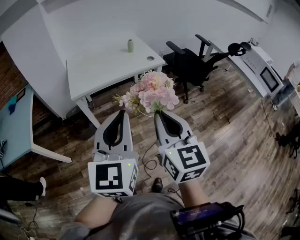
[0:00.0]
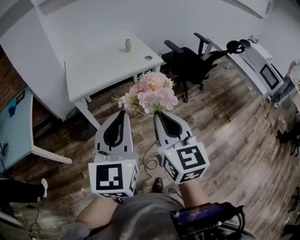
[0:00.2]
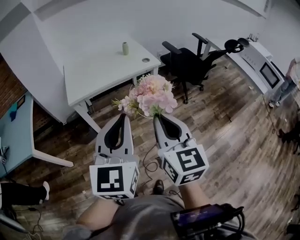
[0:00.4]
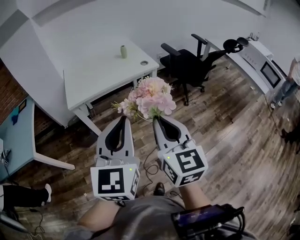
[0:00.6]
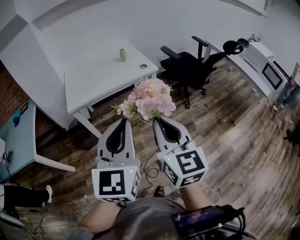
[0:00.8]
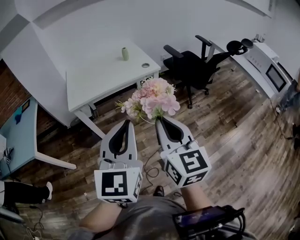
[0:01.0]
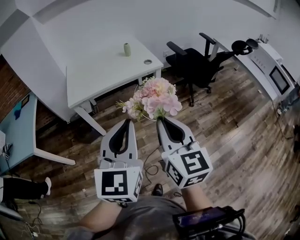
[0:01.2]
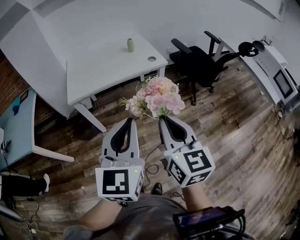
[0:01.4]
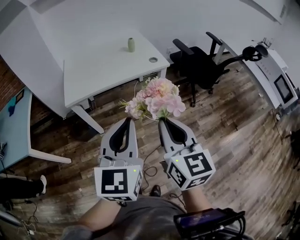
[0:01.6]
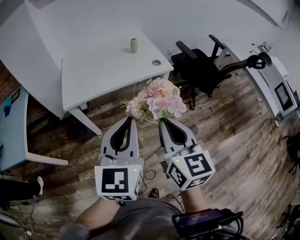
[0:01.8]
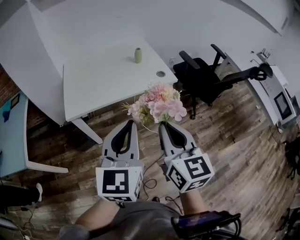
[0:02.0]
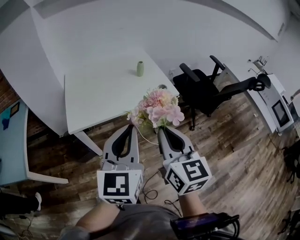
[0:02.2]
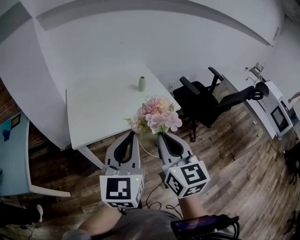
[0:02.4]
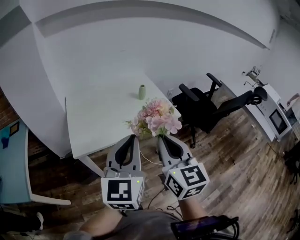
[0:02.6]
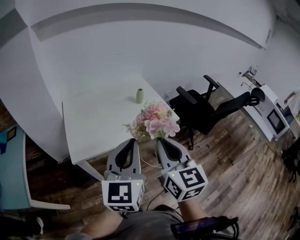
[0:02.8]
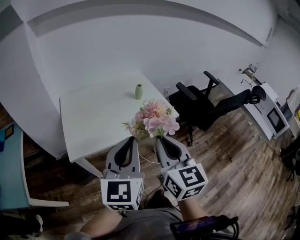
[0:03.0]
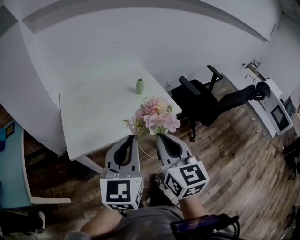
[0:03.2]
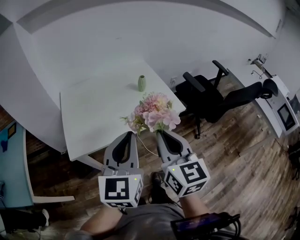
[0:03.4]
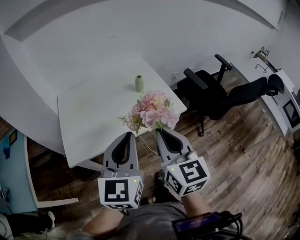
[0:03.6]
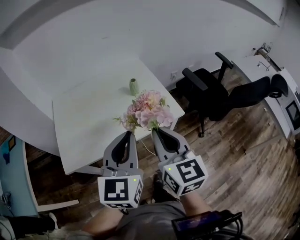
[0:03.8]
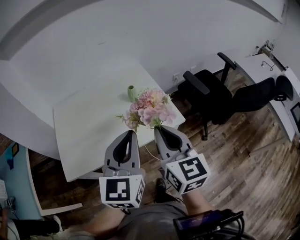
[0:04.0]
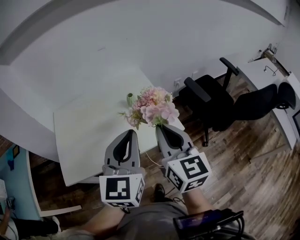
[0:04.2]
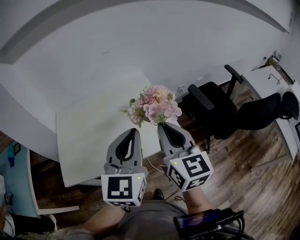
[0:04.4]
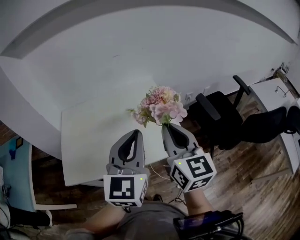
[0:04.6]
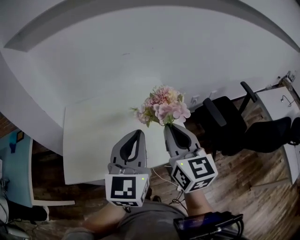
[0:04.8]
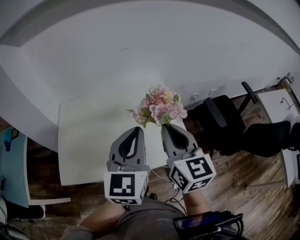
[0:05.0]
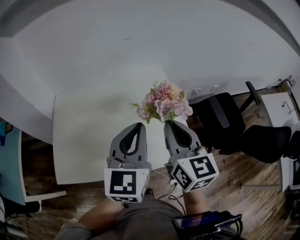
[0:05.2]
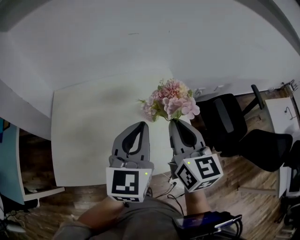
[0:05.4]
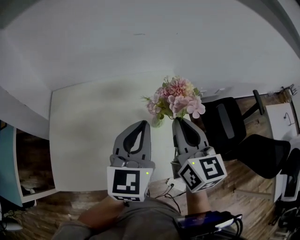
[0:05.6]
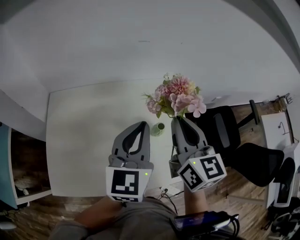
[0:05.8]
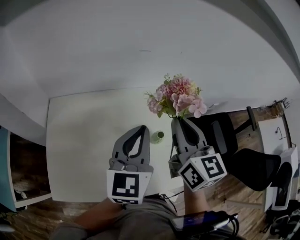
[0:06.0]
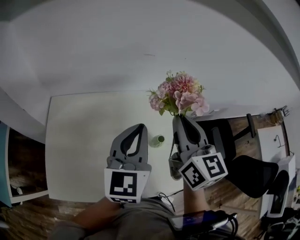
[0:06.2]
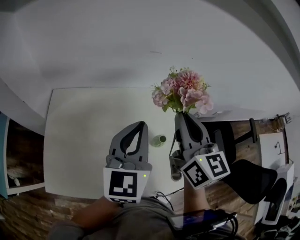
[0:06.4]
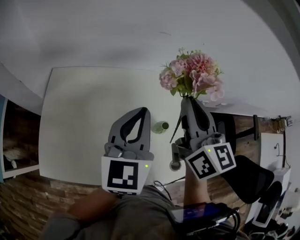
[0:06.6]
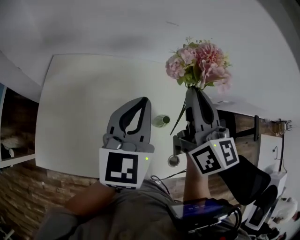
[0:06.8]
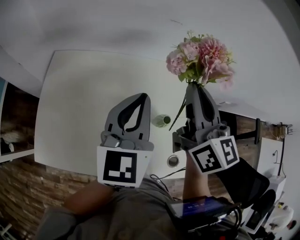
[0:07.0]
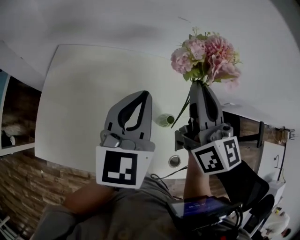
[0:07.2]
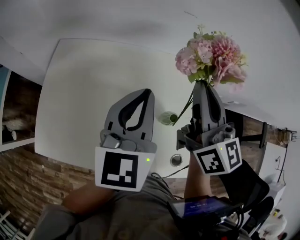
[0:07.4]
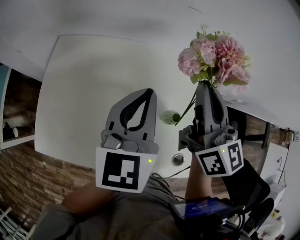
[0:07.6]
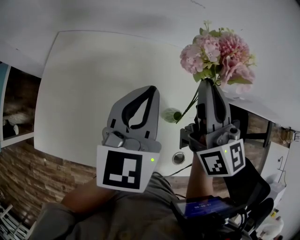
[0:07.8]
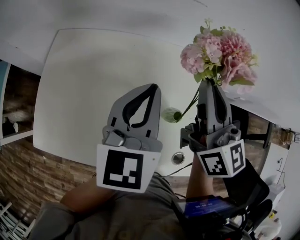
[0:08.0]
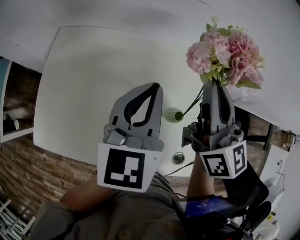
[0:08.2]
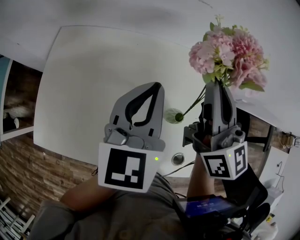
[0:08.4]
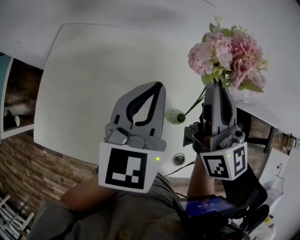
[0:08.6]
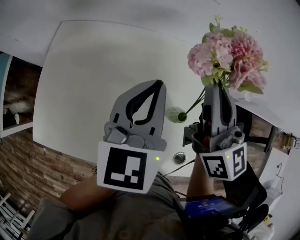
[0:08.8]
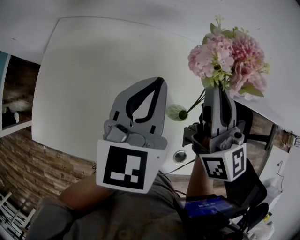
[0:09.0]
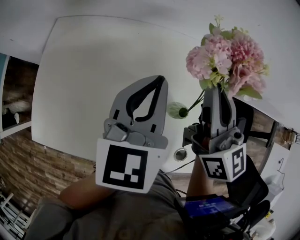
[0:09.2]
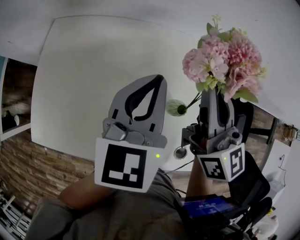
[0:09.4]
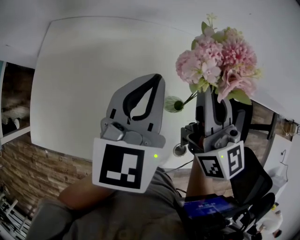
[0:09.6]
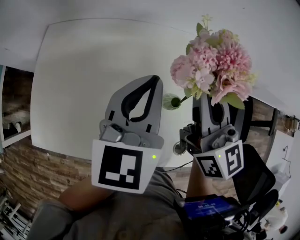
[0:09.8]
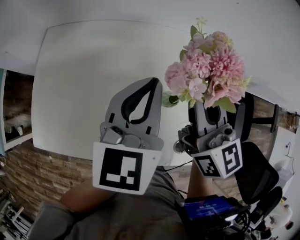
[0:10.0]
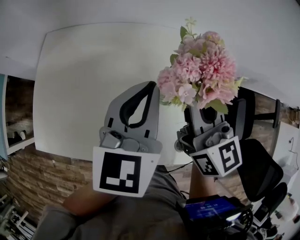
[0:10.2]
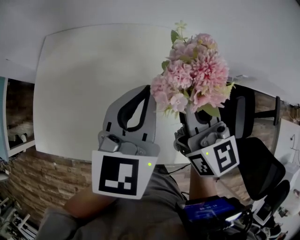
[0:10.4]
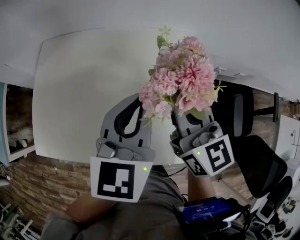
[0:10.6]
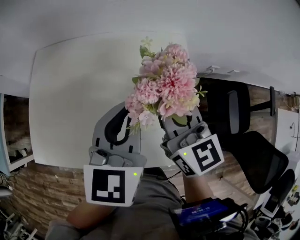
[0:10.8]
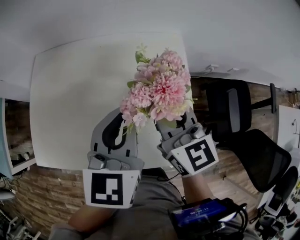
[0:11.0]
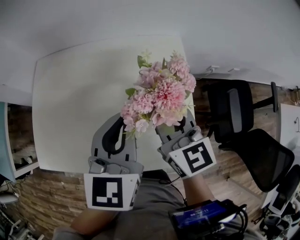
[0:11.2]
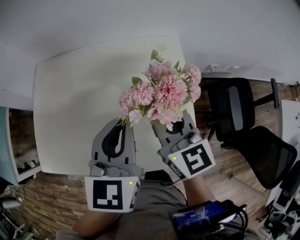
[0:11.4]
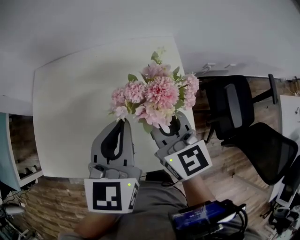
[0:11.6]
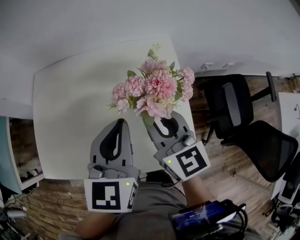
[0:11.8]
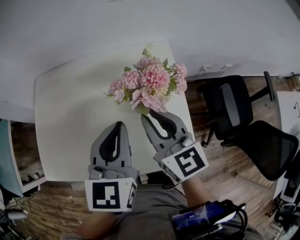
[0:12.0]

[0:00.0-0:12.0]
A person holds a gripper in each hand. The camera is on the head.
0:00.0 to 0:01.6: The right gripper goes roughly 10 cm forward and to the right; the left gripper moves forward, to the right and downward, approximately 15 cm.
0:01.6 to 0:03.0: Both grippers move forward and to the left, roughly 25 cm.
0:03.0 to 0:04.4: Both grippers travel together forward and to the right, roughly 30 cm.
0:04.4 to 0:06.0: The left gripper travels forward and to the left by roughly 25 cm. The right gripper goes approximately 25 cm forward.
0:06.0 to 0:07.6: The right gripper shifts some 5 cm forward, while the left gripper goes approximately 5 cm downward.
0:07.6 to 0:09.0: The grippers move only a little.
0:09.0 to 0:10.4: The right gripper heads downward, covering roughly 5 cm, while the left gripper ends up roughly 5 cm from where it was.
0:10.4 to 0:12.0: Both grippers travel together backward, roughly 10 cm.

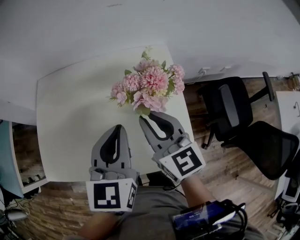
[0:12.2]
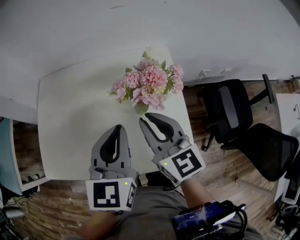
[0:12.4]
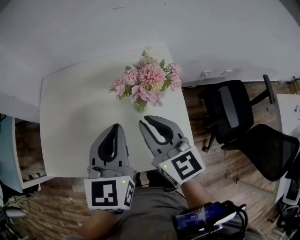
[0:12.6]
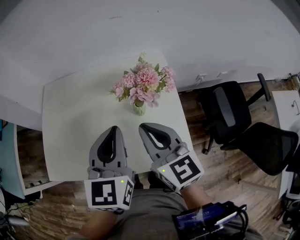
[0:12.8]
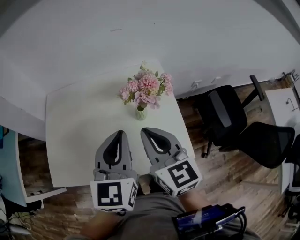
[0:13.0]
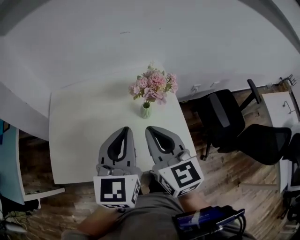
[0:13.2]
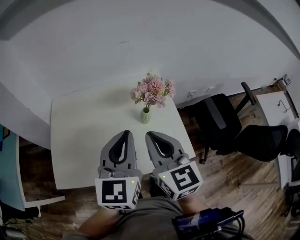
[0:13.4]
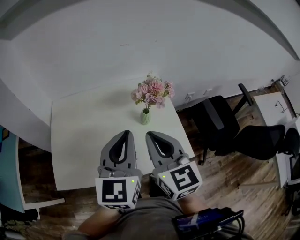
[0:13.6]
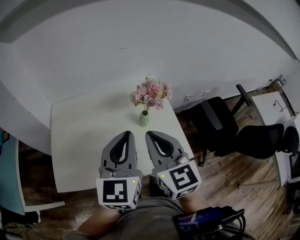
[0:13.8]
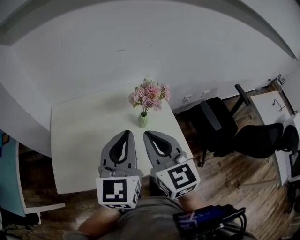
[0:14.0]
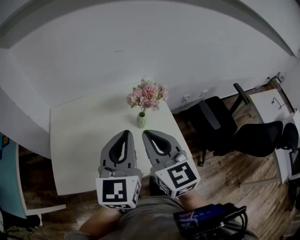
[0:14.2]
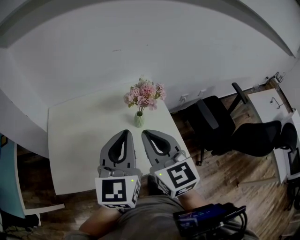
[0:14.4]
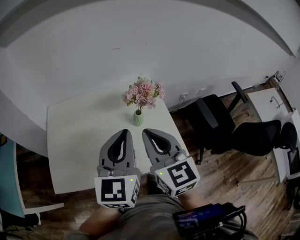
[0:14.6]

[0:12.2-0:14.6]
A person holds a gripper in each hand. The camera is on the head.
0:12.2 to 0:13.4: The left gripper moves upward and backward, about 10 cm. The right gripper shifts approximately 15 cm backward and upward.
0:13.4 to 0:14.6: The grippers move only a little.

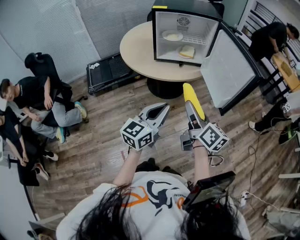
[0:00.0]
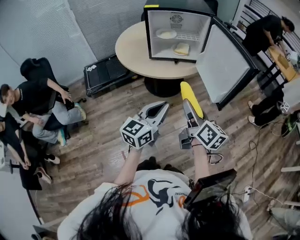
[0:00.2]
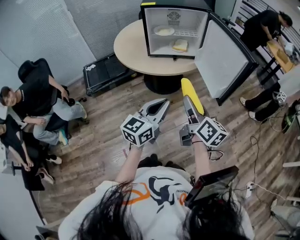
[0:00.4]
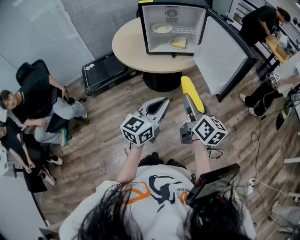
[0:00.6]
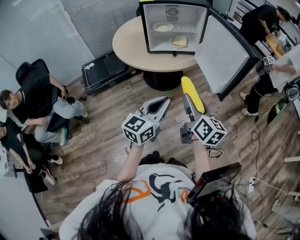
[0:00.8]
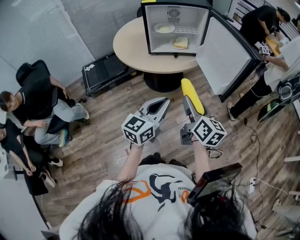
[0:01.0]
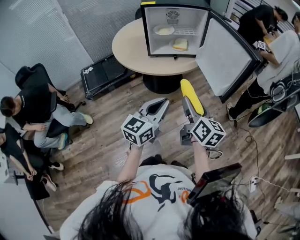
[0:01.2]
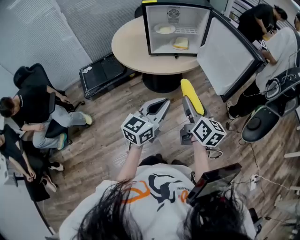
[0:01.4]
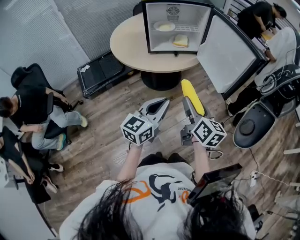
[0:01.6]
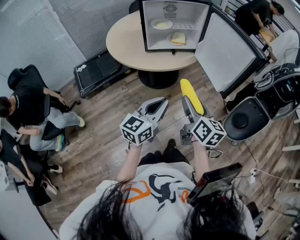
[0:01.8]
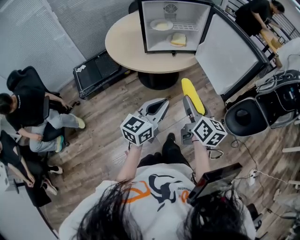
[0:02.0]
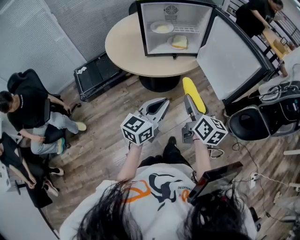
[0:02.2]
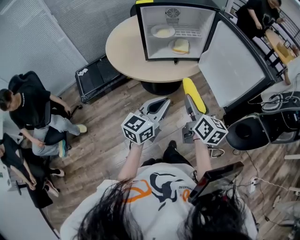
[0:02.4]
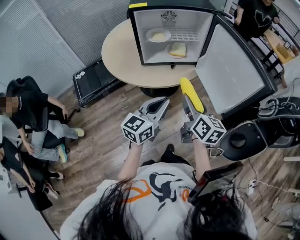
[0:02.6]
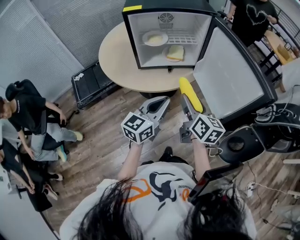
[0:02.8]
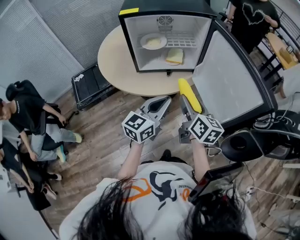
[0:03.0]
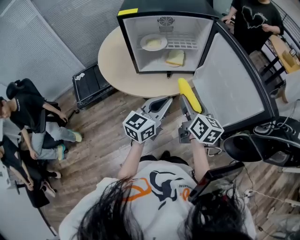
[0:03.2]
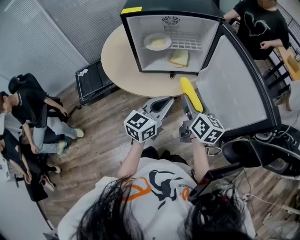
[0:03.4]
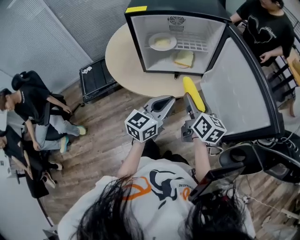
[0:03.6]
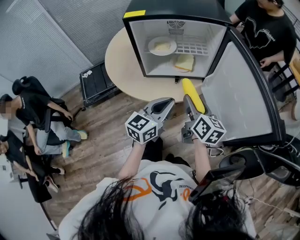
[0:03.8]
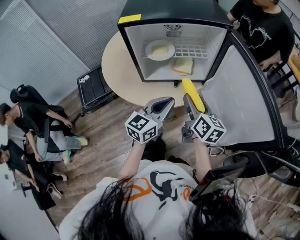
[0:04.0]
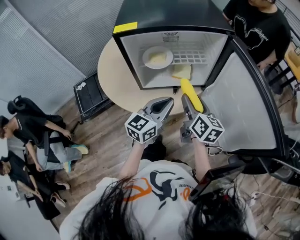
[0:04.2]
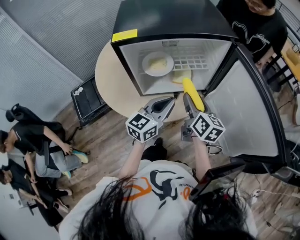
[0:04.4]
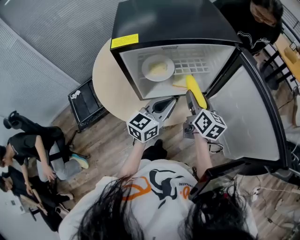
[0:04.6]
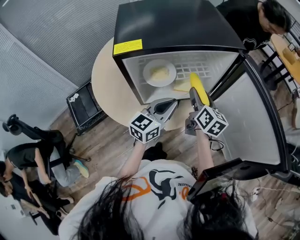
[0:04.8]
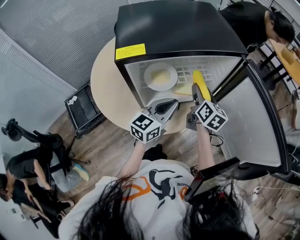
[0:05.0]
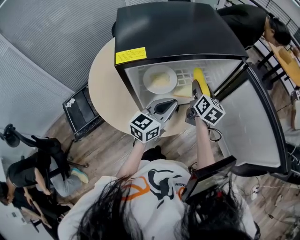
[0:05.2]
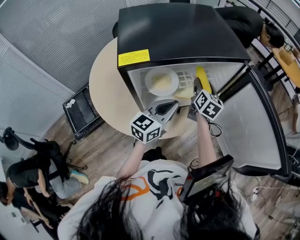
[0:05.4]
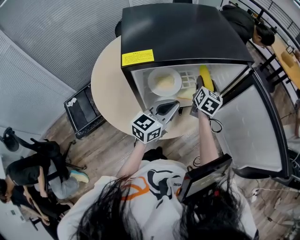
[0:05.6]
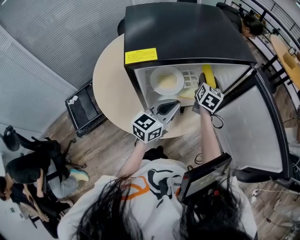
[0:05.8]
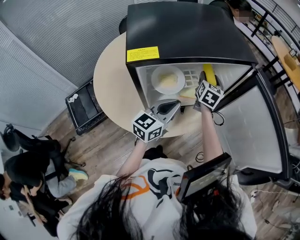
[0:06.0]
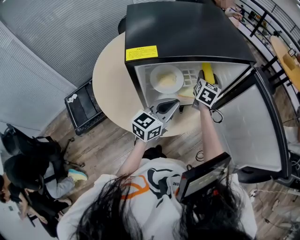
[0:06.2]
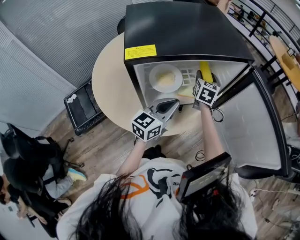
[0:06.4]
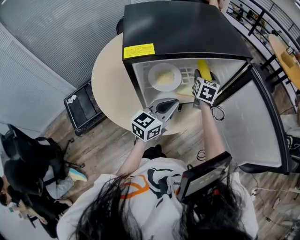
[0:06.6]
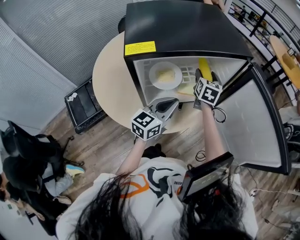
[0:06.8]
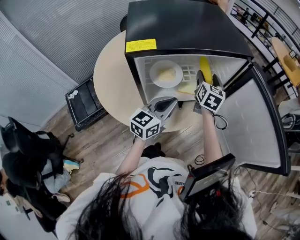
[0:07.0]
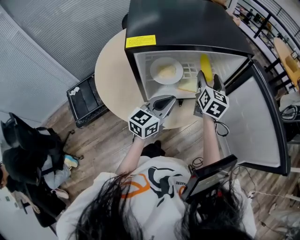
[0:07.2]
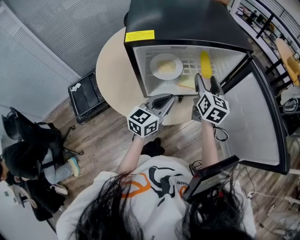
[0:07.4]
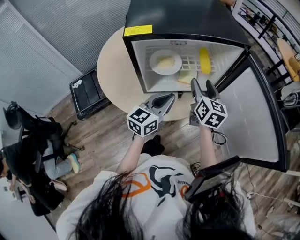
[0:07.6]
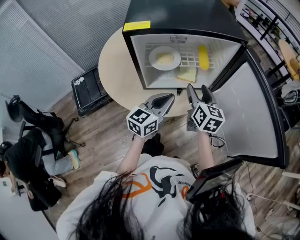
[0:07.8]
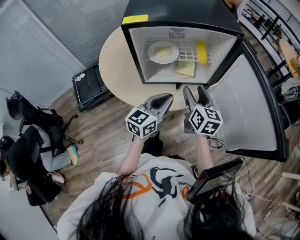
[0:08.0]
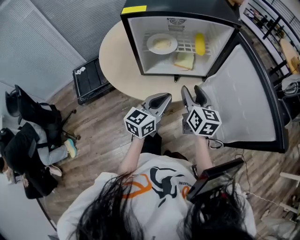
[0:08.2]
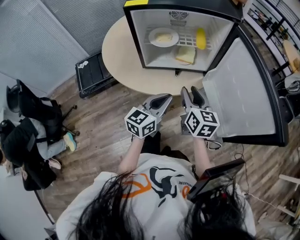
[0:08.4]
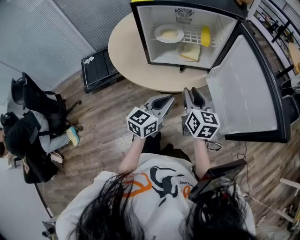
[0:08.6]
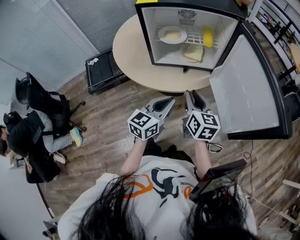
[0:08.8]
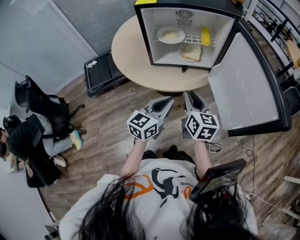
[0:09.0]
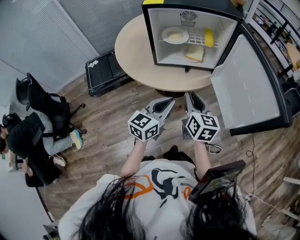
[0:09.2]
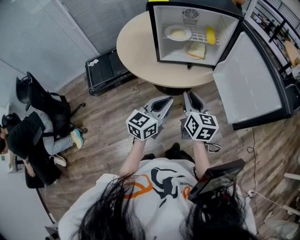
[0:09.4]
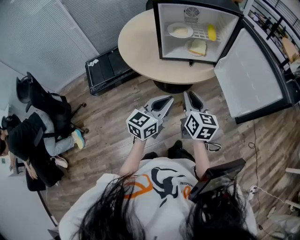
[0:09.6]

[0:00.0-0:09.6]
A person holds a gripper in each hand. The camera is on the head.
0:00.0 to 0:01.6: The right gripper shifts by some 5 cm.
0:01.6 to 0:03.2: The grippers both shift forward by about 25 cm.
0:03.2 to 0:04.8: The right gripper shifts some 20 cm forward. Meanwhile the left gripper is displaced forward and to the left by some 20 cm.
0:04.8 to 0:06.4: The right gripper shifts some 15 cm forward, and swivels some 30 degrees.
0:06.4 to 0:08.0: The right gripper is displaced backward by roughly 25 cm, and swivels some 30 degrees; the left gripper heads backward and to the right, covering approximately 10 cm.
0:08.0 to 0:09.6: Both grippers travel together backward, approximately 20 cm. The right gripper closes its fingers.
